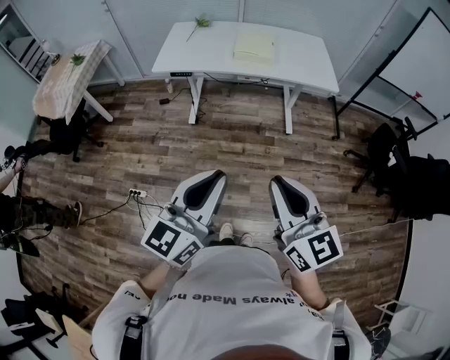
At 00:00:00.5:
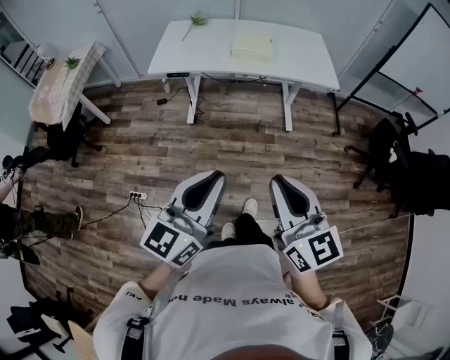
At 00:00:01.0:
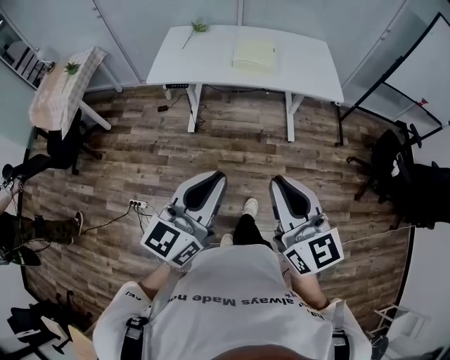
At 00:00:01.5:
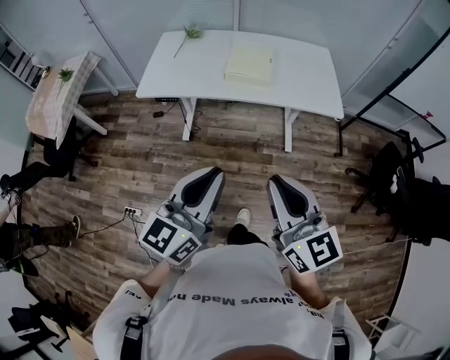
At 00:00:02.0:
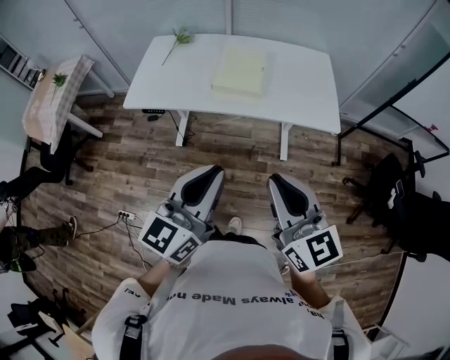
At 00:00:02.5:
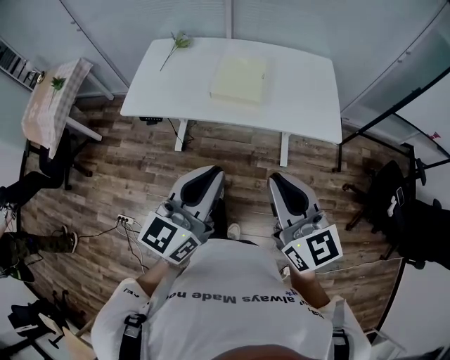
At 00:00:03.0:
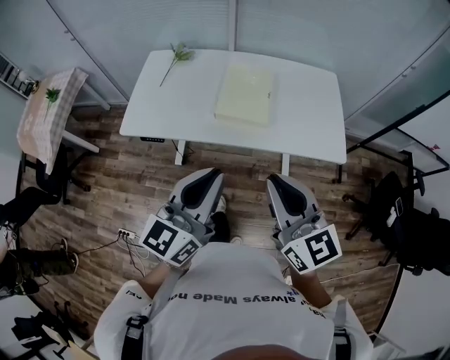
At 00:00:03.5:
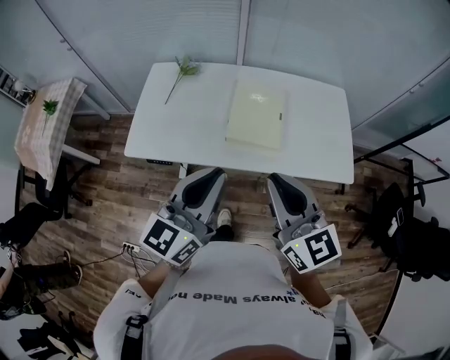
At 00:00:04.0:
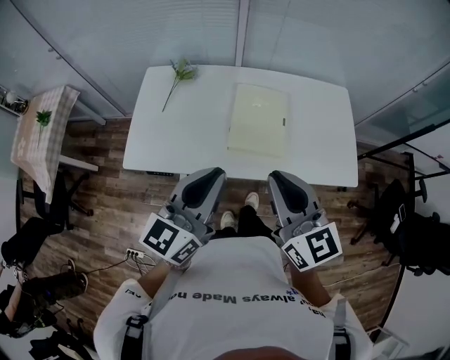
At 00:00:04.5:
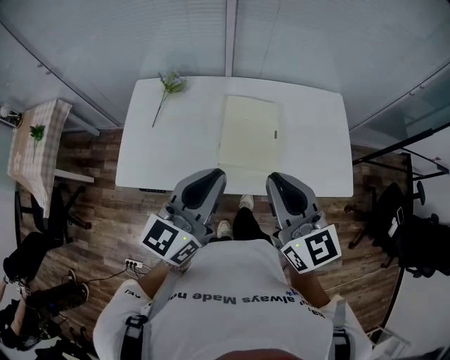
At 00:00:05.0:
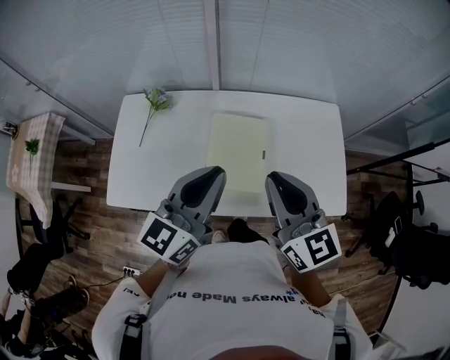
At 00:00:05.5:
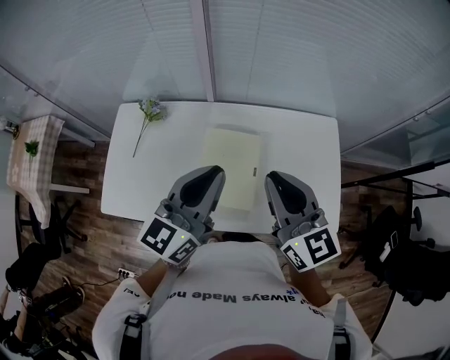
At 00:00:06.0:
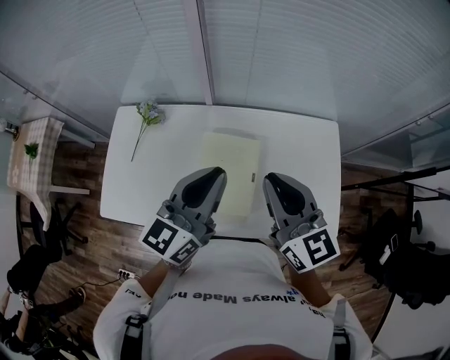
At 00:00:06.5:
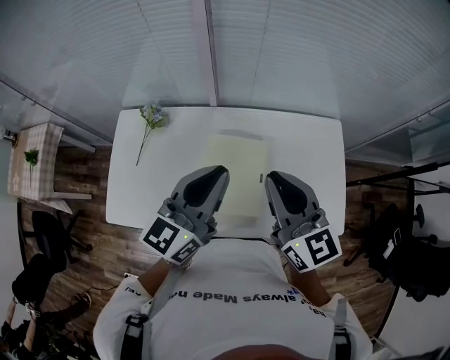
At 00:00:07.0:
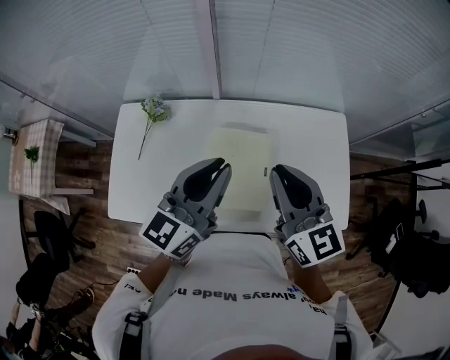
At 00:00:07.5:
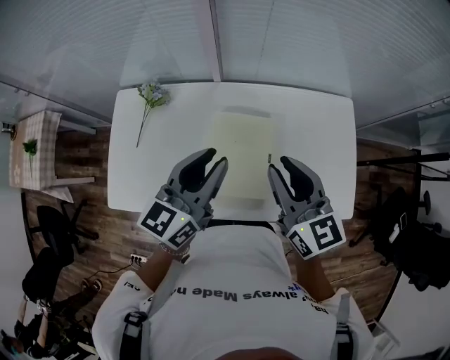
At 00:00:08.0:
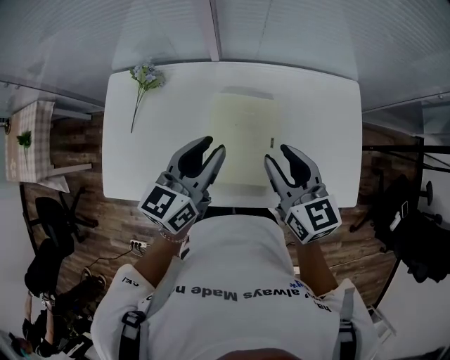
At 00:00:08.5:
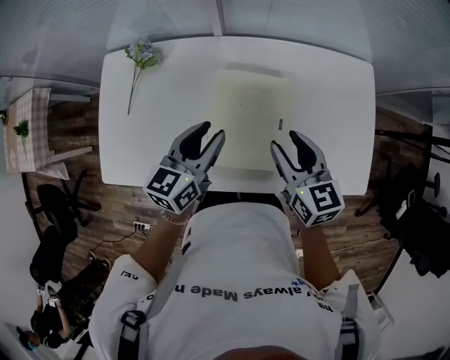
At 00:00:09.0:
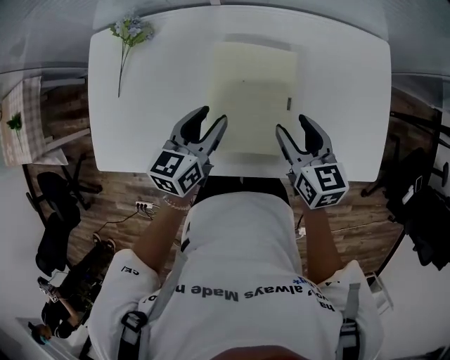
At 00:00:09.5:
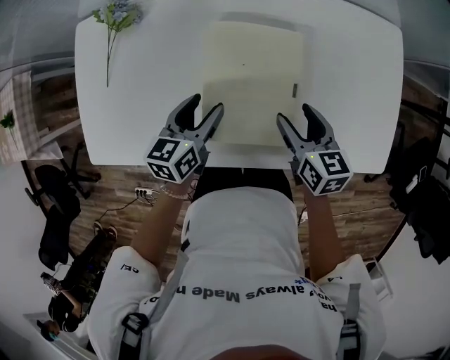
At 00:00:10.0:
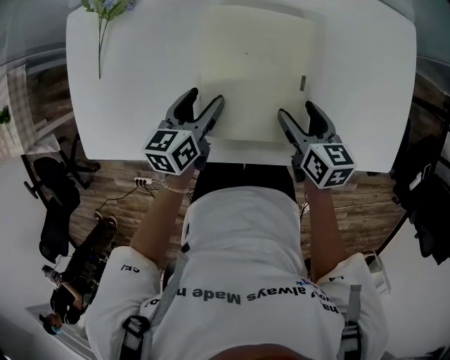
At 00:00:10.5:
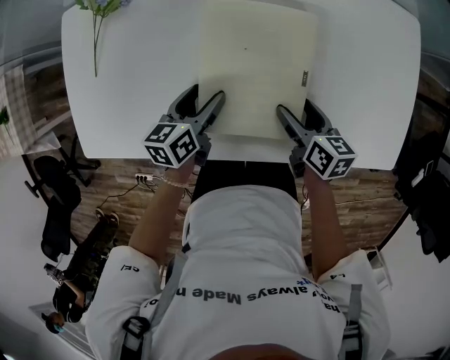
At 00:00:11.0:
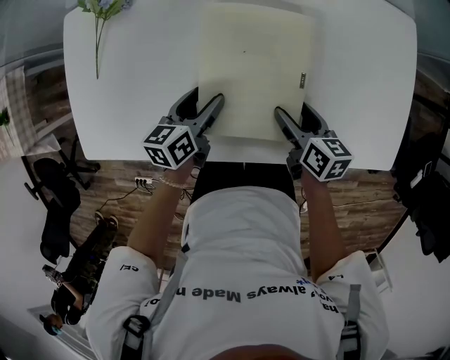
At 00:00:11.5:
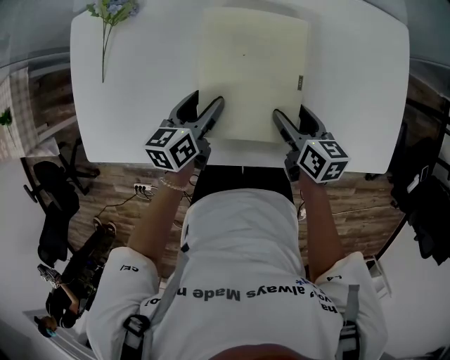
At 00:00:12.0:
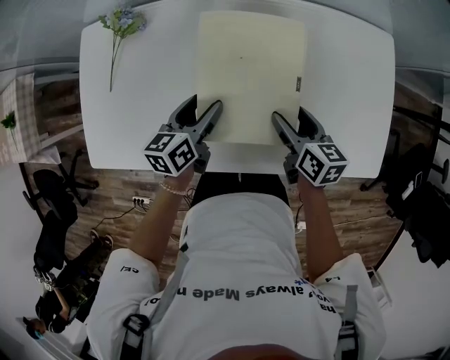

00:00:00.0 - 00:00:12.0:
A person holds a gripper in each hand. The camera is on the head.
00:00:00.0 - 00:00:02.0: Both grippers move forward, some 35 cm.
00:00:02.0 - 00:00:04.0: Both grippers move forward, roughly 35 cm.
00:00:04.0 - 00:00:06.0: The grippers both shift forward by roughly 30 cm.
00:00:06.0 - 00:00:08.0: The left gripper shifts approximately 15 cm downward and to the left; the right gripper moves downward, some 15 cm, and opens up.
00:00:08.0 - 00:00:10.0: Both grippers move downward, approximately 30 cm. The left gripper turns by about 30 degrees, and opens its fingers; the right gripper changes its angle by roughly 30 degrees, and opens.
00:00:10.0 - 00:00:12.0: The right gripper ends up some 5 cm from where it was; the left gripper is displaced upward by approximately 5 cm.

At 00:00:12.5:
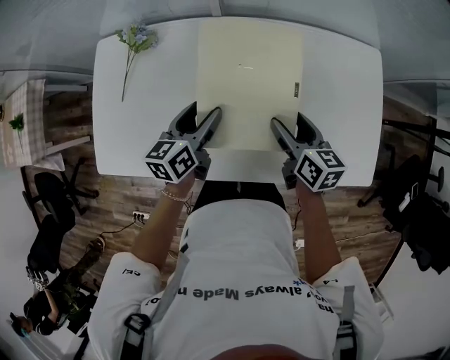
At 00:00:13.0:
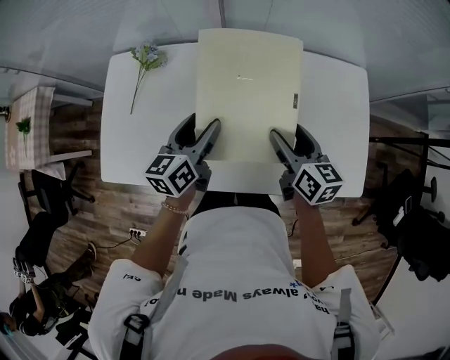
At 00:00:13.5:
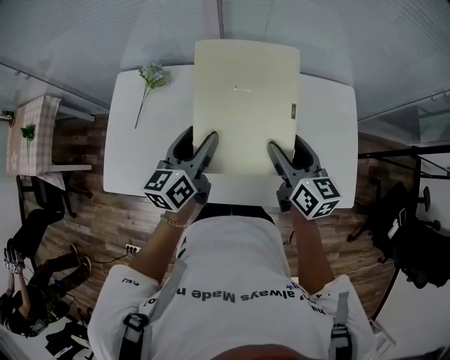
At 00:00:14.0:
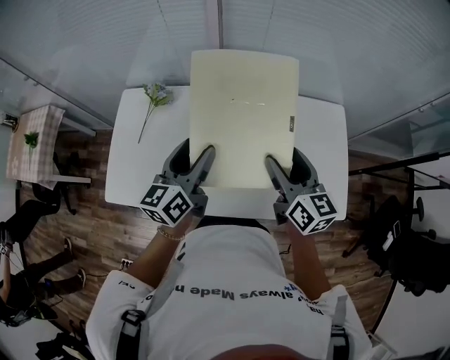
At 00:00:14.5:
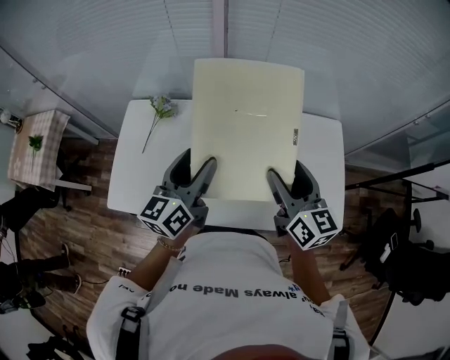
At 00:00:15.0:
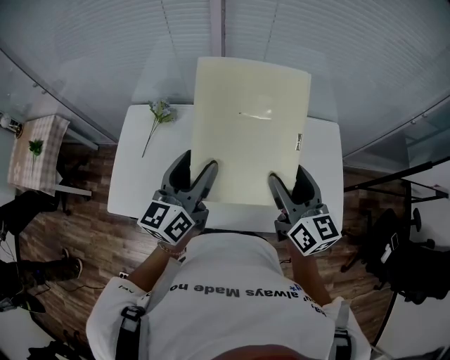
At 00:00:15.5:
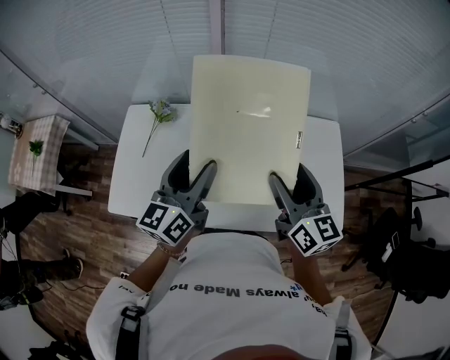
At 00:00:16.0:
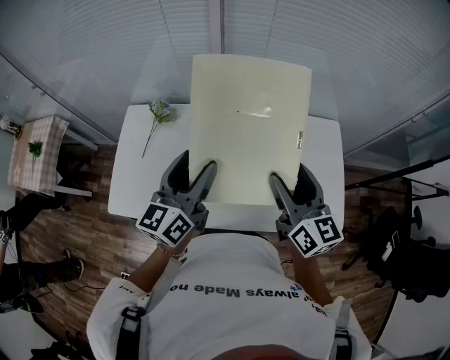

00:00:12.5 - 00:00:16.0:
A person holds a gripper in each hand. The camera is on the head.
00:00:12.5 - 00:00:14.5: The two grippers go roughly 25 cm upward. The left gripper swivels roughly 20 degrees. Meanwhile the right gripper changes its angle by roughly 30 degrees.
00:00:14.5 - 00:00:16.0: There are only small adjustments of the grippers.

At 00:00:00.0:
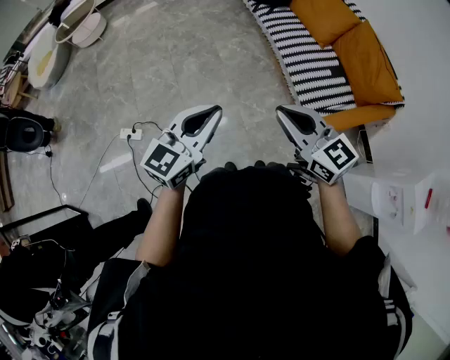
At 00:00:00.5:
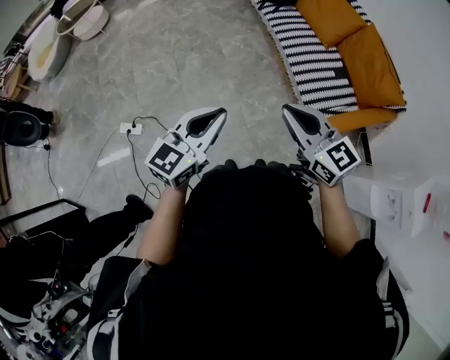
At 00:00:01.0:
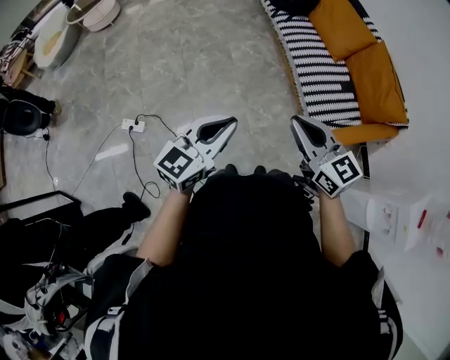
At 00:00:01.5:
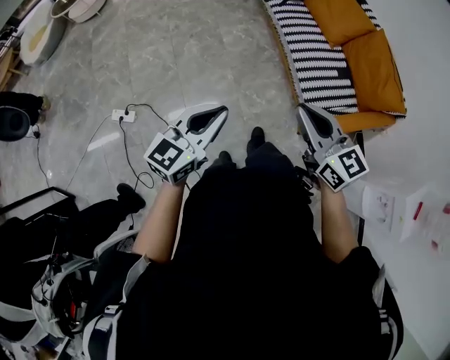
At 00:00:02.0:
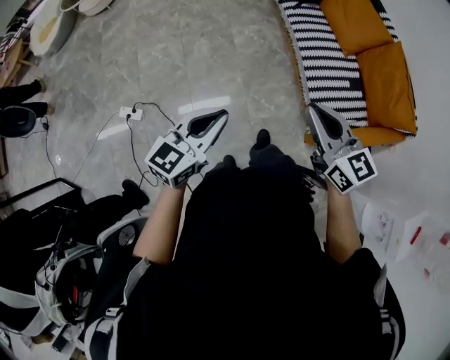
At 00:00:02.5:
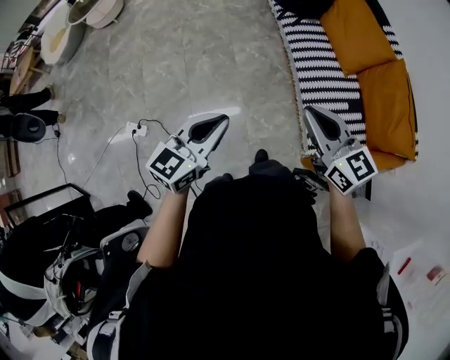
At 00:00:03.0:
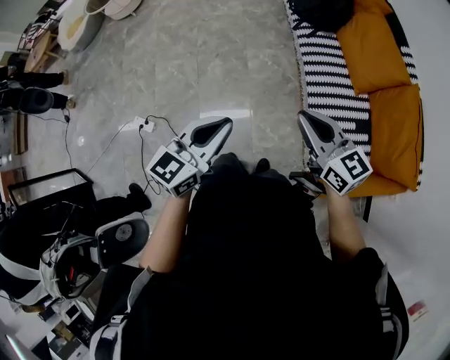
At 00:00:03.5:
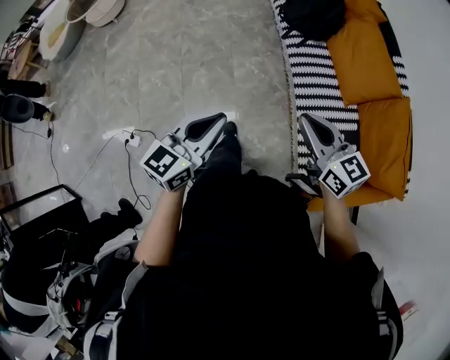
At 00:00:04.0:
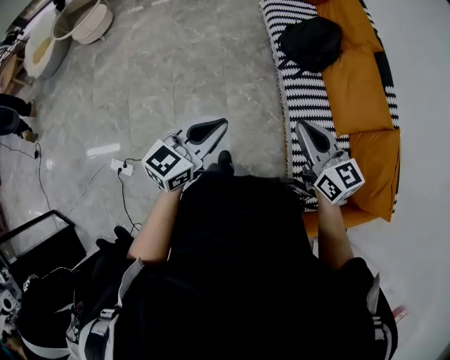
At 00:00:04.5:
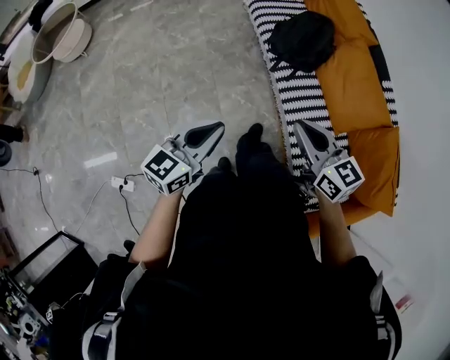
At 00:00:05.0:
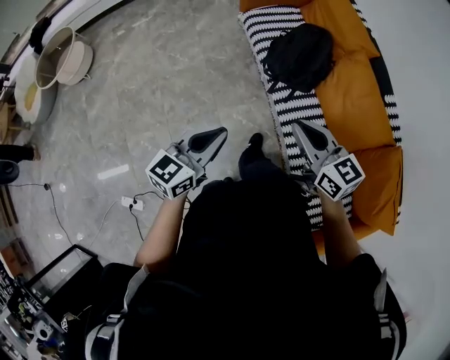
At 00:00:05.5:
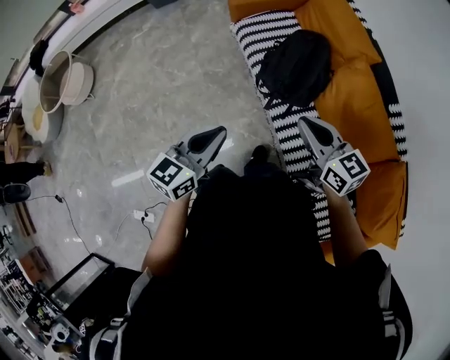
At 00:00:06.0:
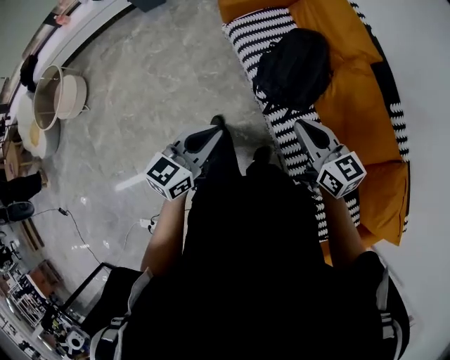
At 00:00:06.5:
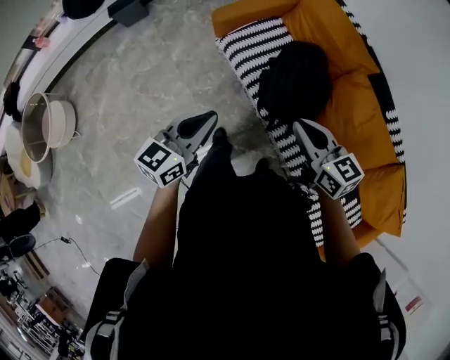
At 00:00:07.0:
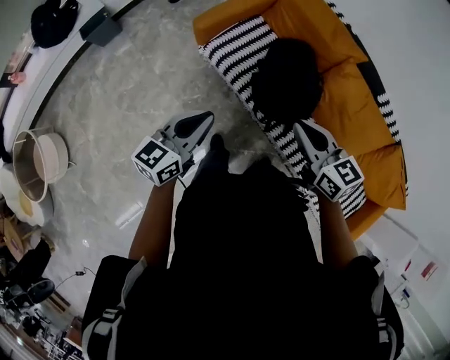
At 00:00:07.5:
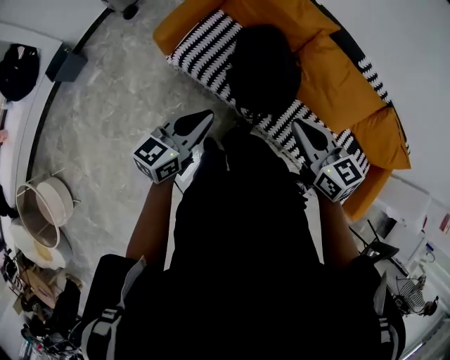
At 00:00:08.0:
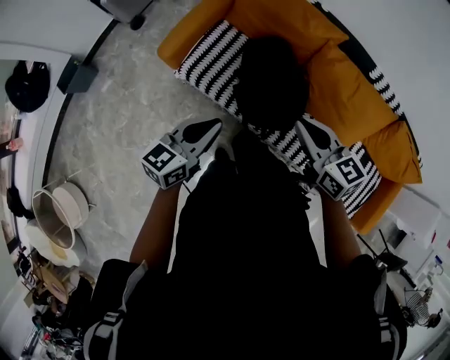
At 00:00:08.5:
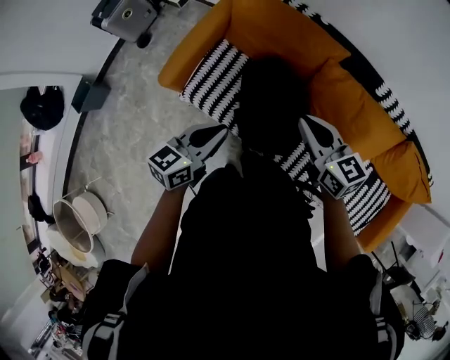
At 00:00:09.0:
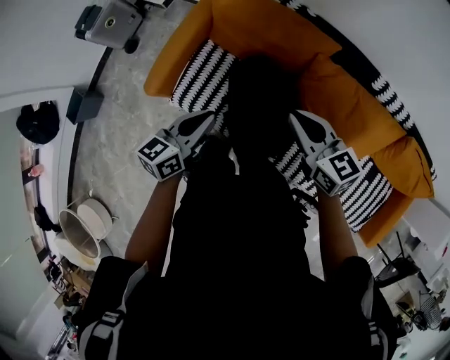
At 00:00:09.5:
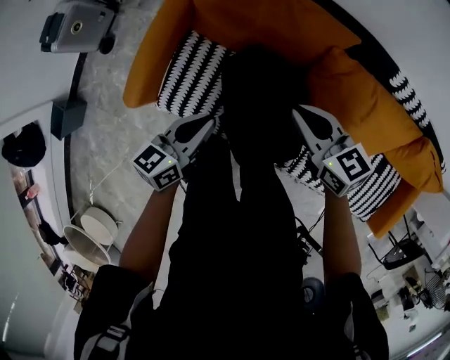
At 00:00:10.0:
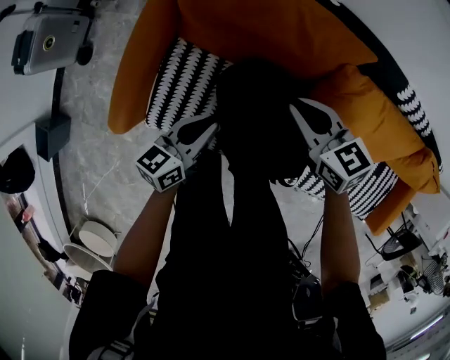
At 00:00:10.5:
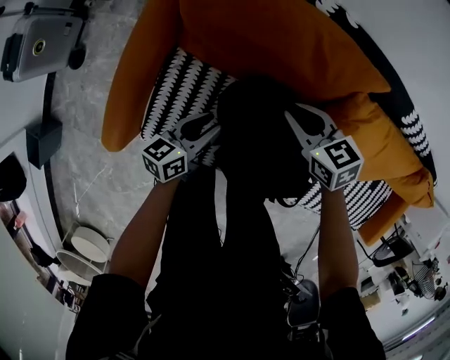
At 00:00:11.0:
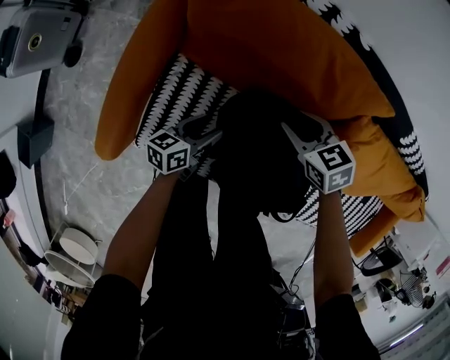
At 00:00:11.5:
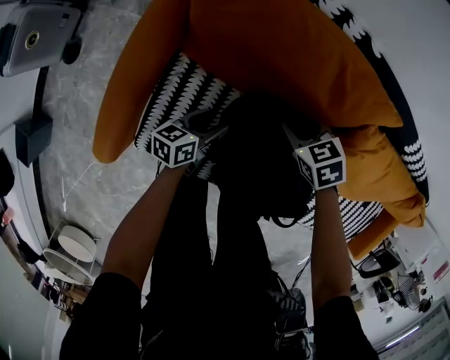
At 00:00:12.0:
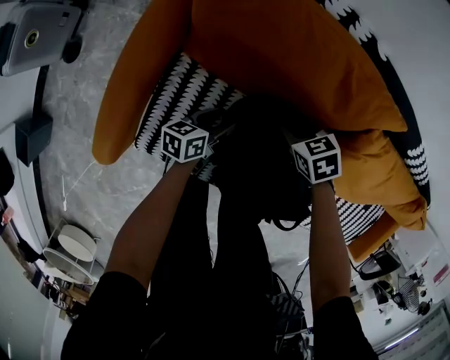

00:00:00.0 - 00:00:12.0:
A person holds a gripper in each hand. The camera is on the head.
00:00:00.0 - 00:00:02.0: The right gripper goes roughly 10 cm forward; the left gripper travels forward and downward by approximately 10 cm.
00:00:02.0 - 00:00:04.0: The pair of grippers is taken forward, approximately 40 cm.
00:00:04.0 - 00:00:06.0: Both grippers are carried forward, some 40 cm.
00:00:06.0 - 00:00:08.0: The right gripper moves approximately 15 cm, and rotates roughly 30 degrees. The left gripper shifts by roughly 30 cm, and rotates roughly 30 degrees.
00:00:08.0 - 00:00:10.0: Both grippers travel together forward and downward, approximately 35 cm.
00:00:10.0 - 00:00:12.0: The two grippers go some 20 cm downward. The left gripper turns by approximately 20 degrees, and opens its fingers. The right gripper angles its fingers downward, by approximately 30 degrees, and opens up.
